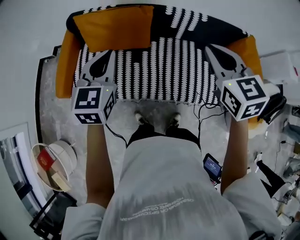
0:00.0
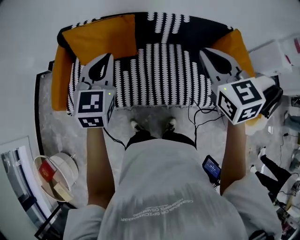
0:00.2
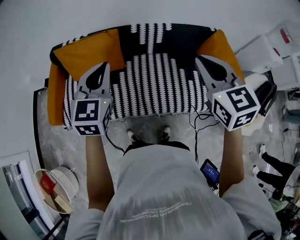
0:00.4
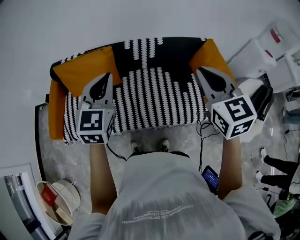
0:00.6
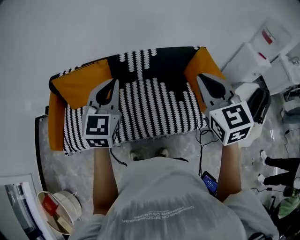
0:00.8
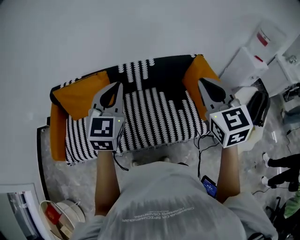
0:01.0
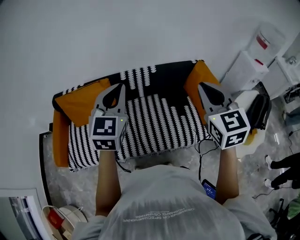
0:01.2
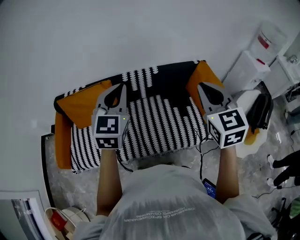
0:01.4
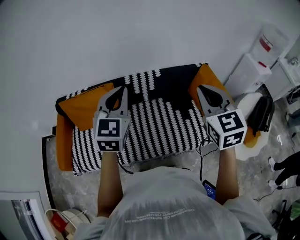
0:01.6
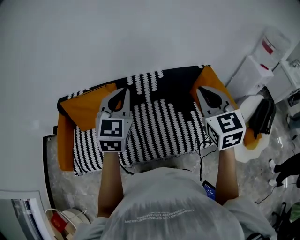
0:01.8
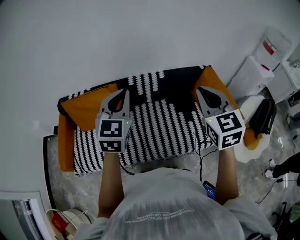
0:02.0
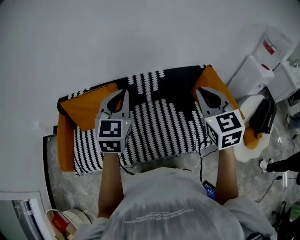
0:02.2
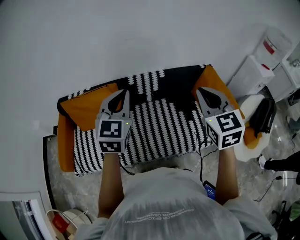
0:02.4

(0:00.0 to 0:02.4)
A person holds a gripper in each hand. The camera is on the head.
0:00.0 - 0:01.2: The right gripper heads to the right, covering about 25 cm, and rotates some 20 degrees. The left gripper is displaced to the right and upward by some 30 cm.
0:01.2 - 0:02.4: The right gripper travels to the left by about 5 cm. Meanwhile the left gripper shifts by about 5 cm.

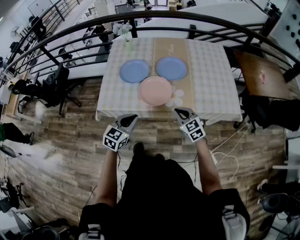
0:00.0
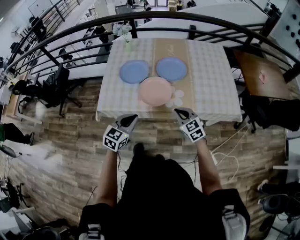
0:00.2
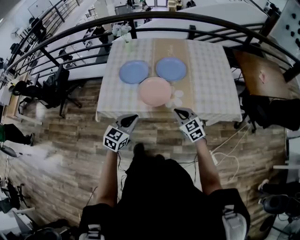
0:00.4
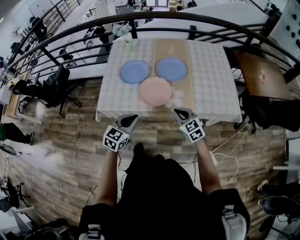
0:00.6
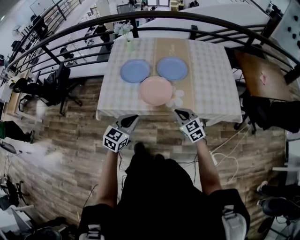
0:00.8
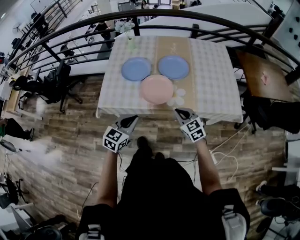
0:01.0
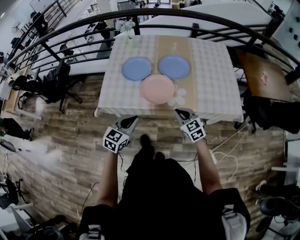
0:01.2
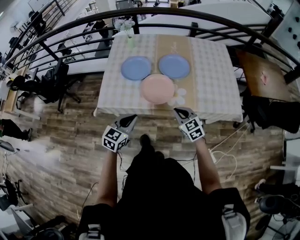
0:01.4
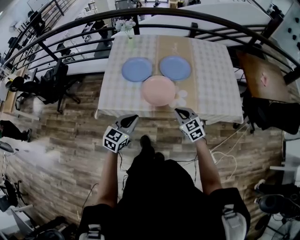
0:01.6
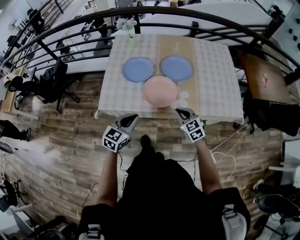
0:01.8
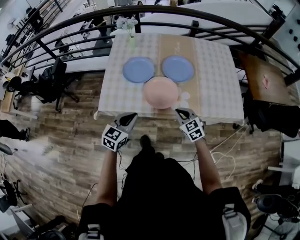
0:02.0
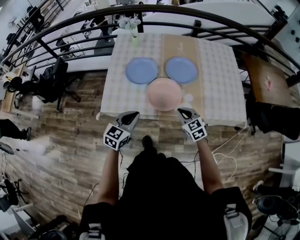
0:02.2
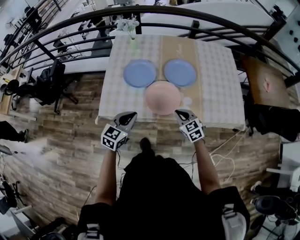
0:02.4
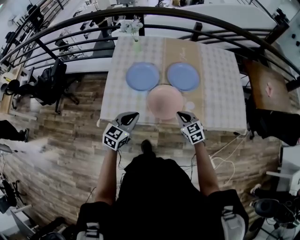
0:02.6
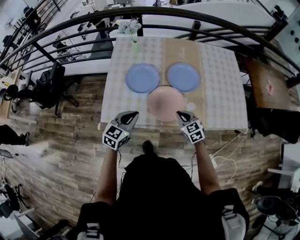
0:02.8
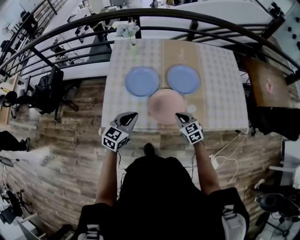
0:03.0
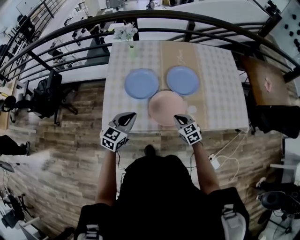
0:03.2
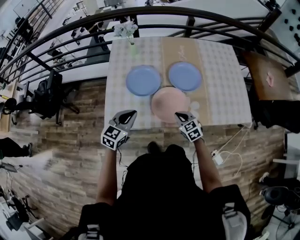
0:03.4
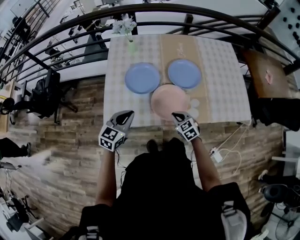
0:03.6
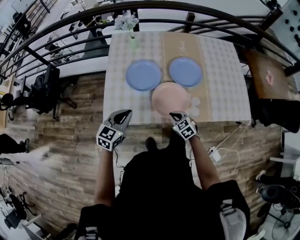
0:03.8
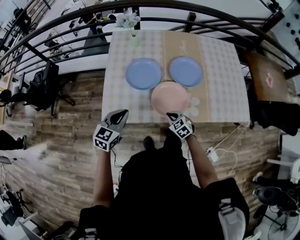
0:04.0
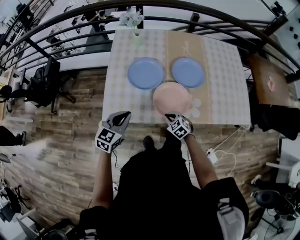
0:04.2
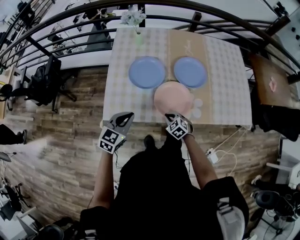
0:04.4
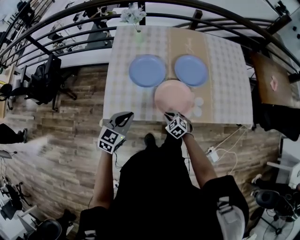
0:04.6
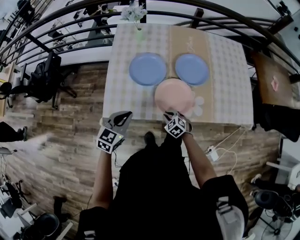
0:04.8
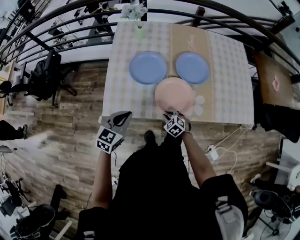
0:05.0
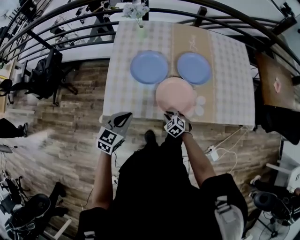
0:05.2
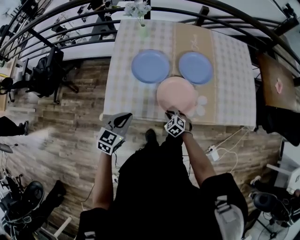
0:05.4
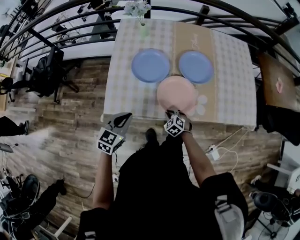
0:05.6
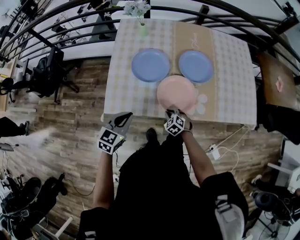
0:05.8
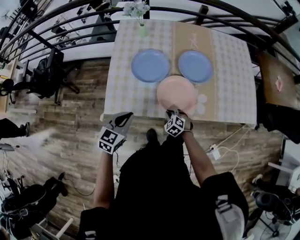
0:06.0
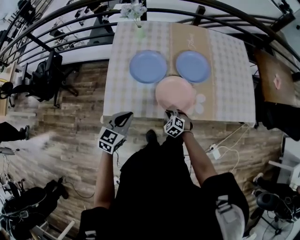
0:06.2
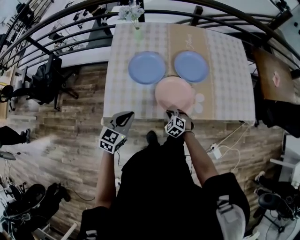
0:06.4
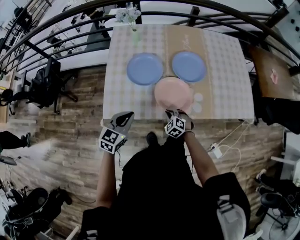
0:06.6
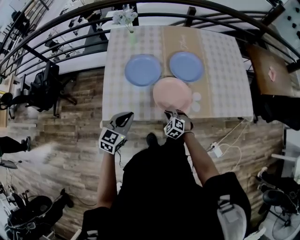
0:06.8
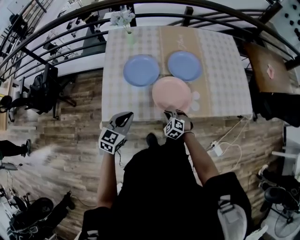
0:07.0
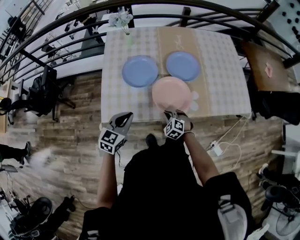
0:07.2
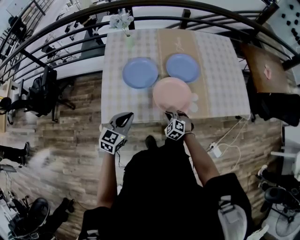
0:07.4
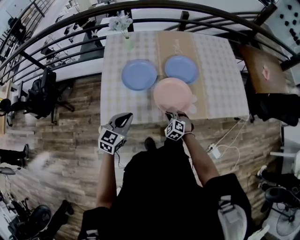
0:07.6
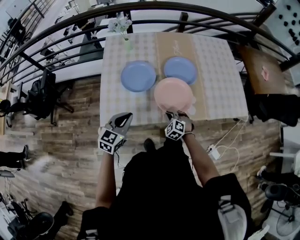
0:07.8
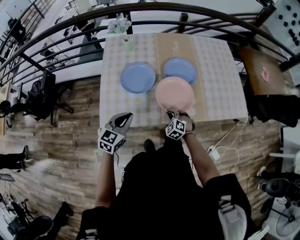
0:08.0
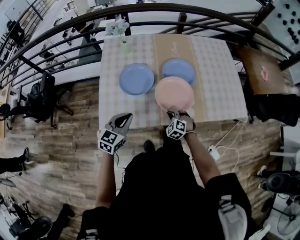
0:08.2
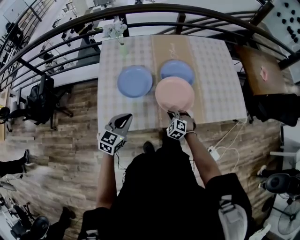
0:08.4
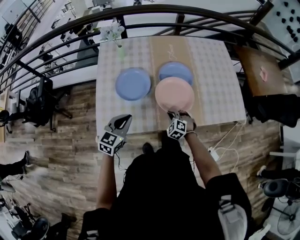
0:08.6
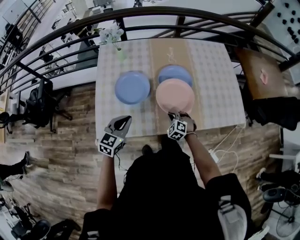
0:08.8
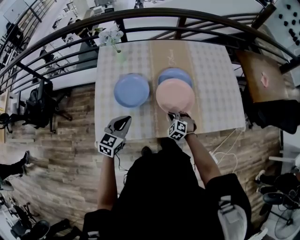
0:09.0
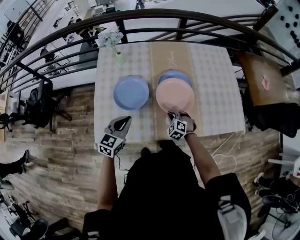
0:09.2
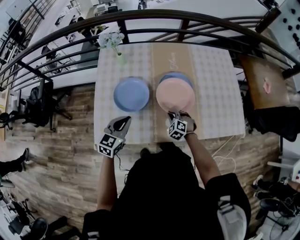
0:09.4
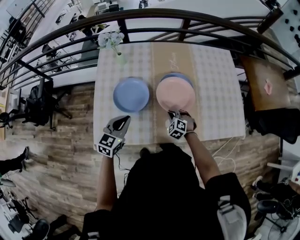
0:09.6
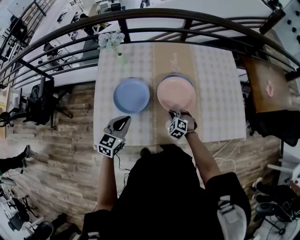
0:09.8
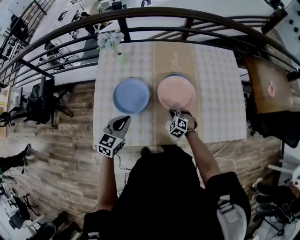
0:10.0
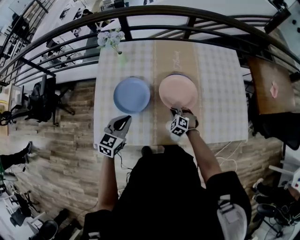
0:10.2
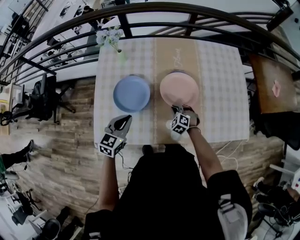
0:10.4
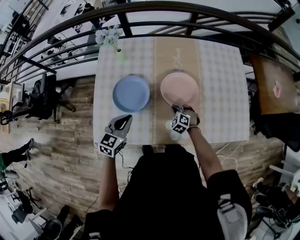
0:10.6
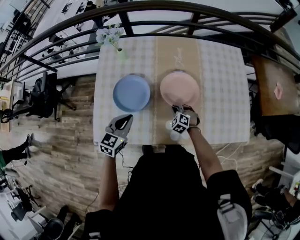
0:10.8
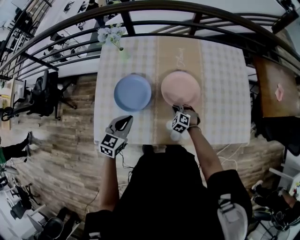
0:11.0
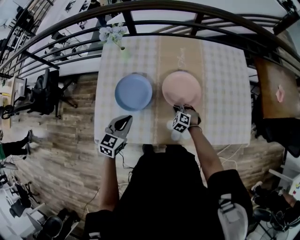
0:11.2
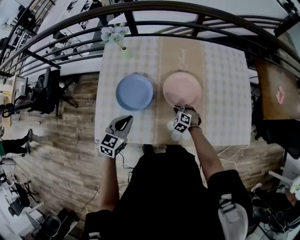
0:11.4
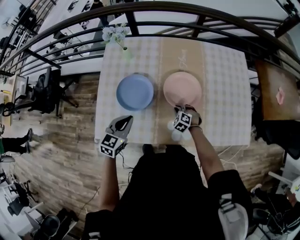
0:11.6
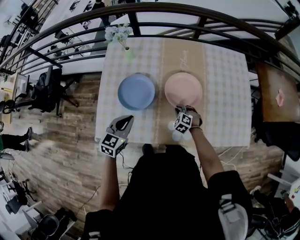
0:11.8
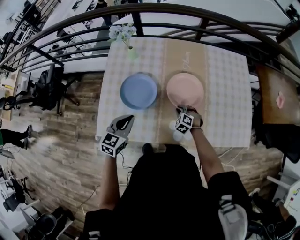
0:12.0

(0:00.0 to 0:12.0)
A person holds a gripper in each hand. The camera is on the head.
0:00.0 - 0:01.6: The grippers move only a little.
0:01.6 - 0:03.0: The right gripper moves forward, to the left and downward, some 15 cm. Meanwhile the left gripper shifts roughly 20 cm forward and to the left.
0:03.0 - 0:04.4: The right gripper is displaced downward and to the left by some 15 cm, and turns by roughly 20 degrees, while the left gripper is displaced to the left by approximately 5 cm.
0:04.4 - 0:06.0: The grippers make only small movements.
0:06.0 - 0:07.6: The right gripper heads upward, covering some 5 cm.
0:07.6 - 0:09.0: The left gripper is displaced forward by about 10 cm. The right gripper is displaced forward and to the right by some 15 cm.
0:09.0 - 0:10.4: Both grippers travel together forward, some 10 cm.
0:10.4 - 0:12.0: The grippers make only small movements.

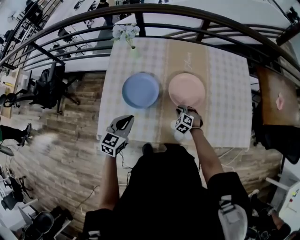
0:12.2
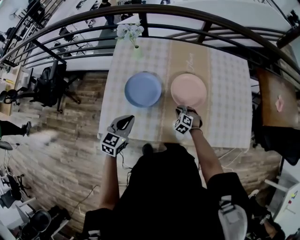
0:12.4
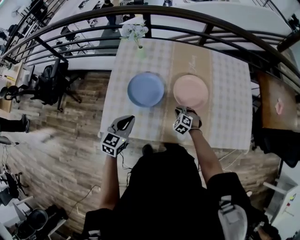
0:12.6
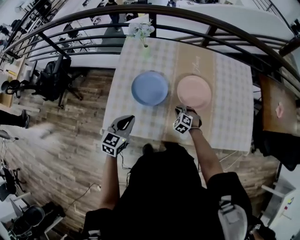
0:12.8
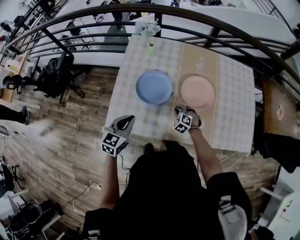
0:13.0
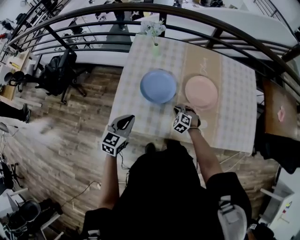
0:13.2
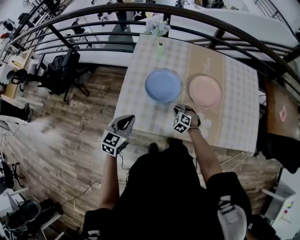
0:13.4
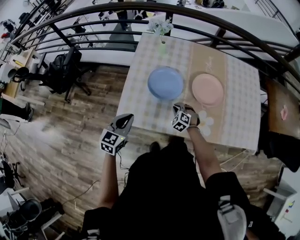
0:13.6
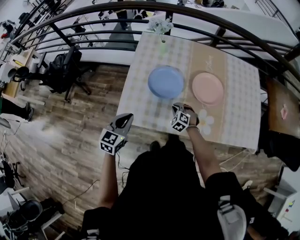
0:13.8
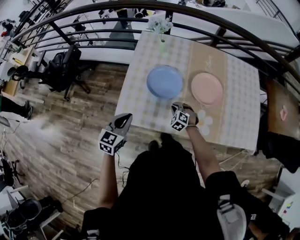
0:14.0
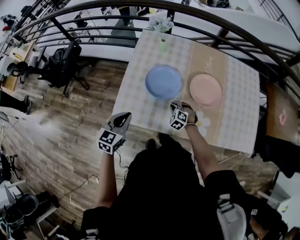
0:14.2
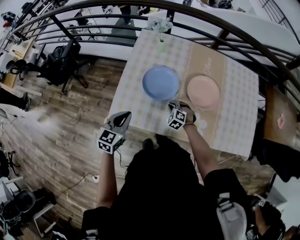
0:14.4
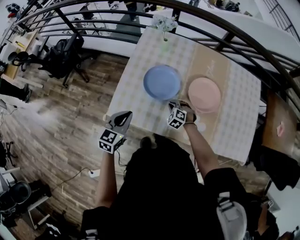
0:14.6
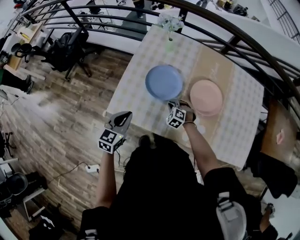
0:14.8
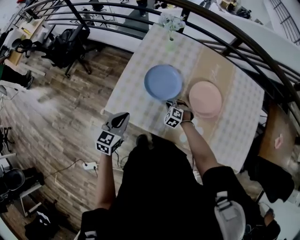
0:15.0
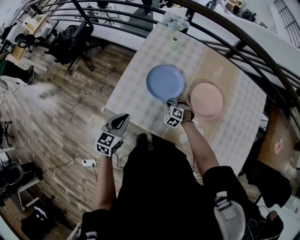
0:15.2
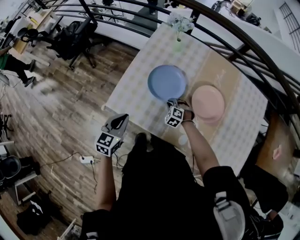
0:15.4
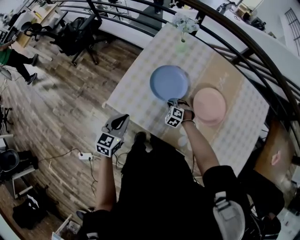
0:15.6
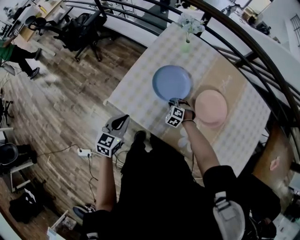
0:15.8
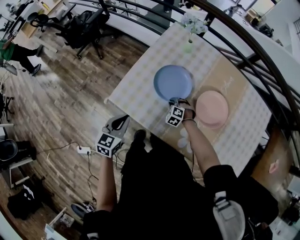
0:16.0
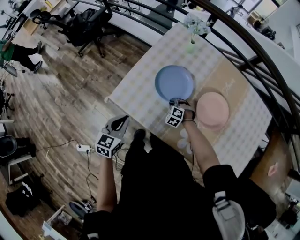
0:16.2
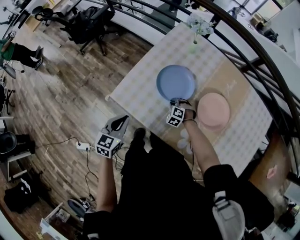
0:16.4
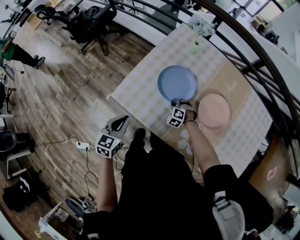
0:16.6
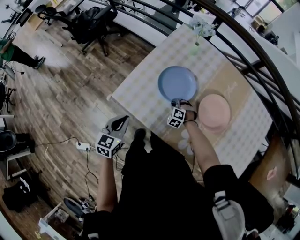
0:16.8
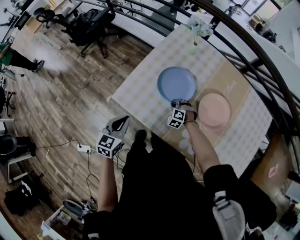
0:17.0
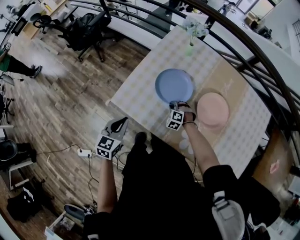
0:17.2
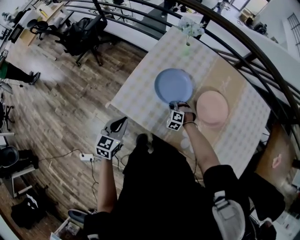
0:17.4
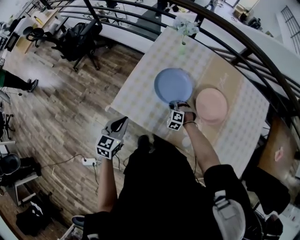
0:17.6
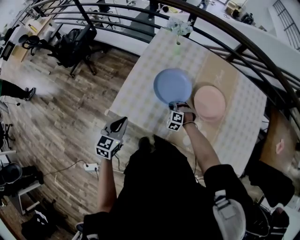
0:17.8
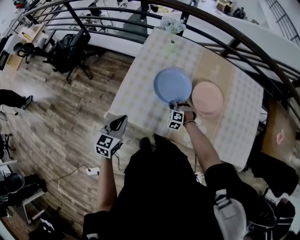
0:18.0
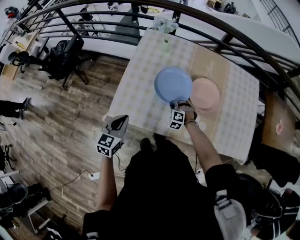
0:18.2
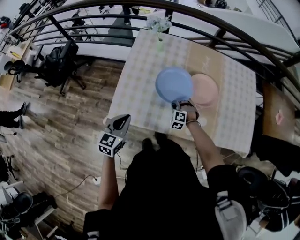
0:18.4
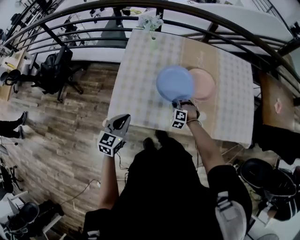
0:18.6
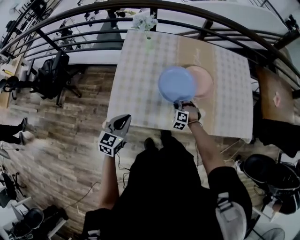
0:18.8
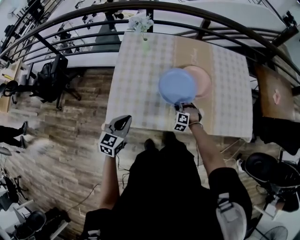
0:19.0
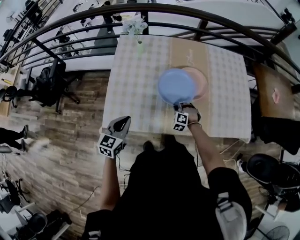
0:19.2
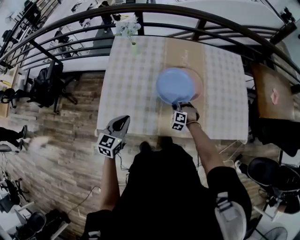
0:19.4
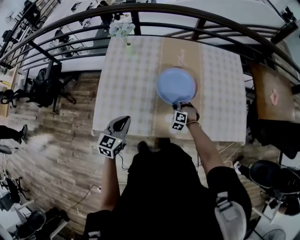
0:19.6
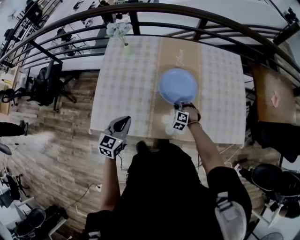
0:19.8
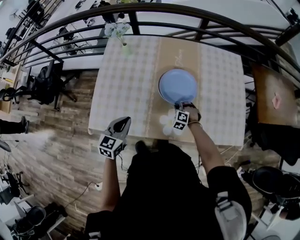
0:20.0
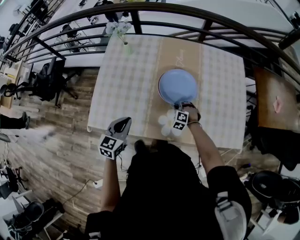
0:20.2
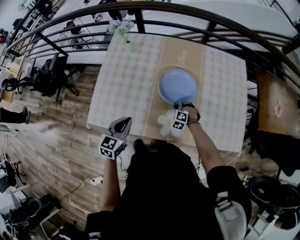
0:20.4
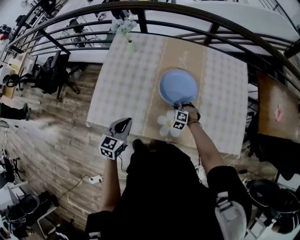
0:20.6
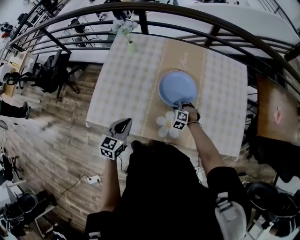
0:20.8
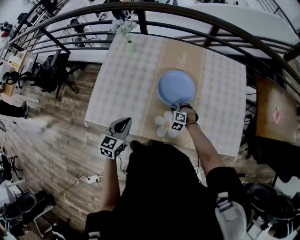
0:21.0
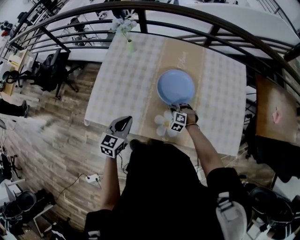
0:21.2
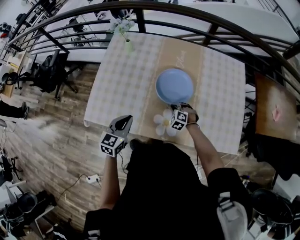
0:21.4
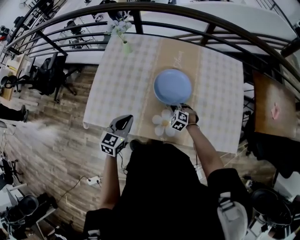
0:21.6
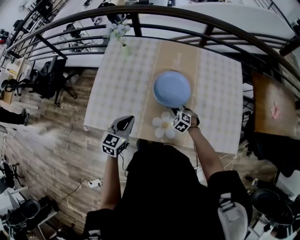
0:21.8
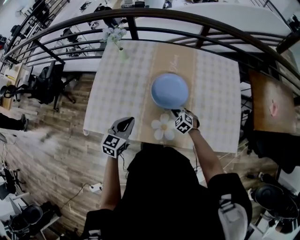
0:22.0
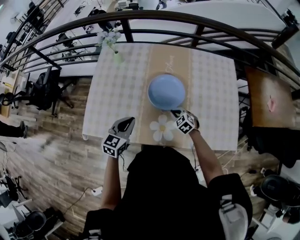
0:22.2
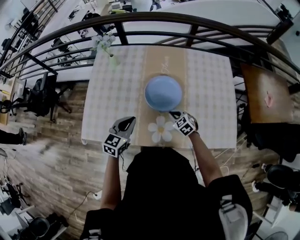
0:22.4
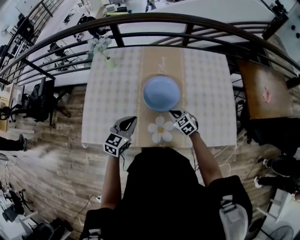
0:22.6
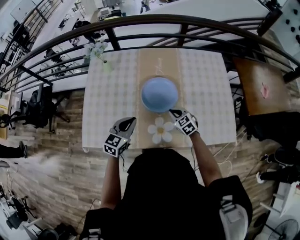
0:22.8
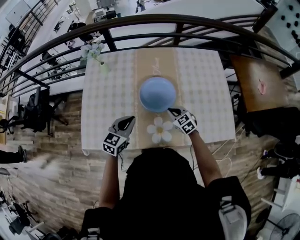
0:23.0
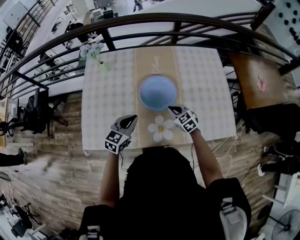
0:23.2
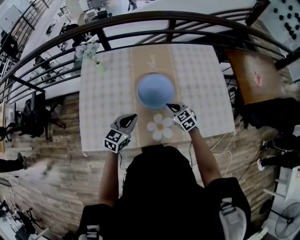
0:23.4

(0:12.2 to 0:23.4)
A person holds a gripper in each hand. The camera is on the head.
0:12.2 - 0:13.8: Both grippers travel together to the left and backward, approximately 20 cm.
0:13.8 - 0:15.4: The right gripper goes approximately 5 cm forward, and swivels some 20 degrees.
0:15.4 - 0:17.0: The grippers move only a little.
0:17.0 - 0:18.6: The left gripper changes place by some 5 cm, and changes its angle by approximately 30 degrees. The right gripper shifts by some 10 cm, and changes its angle by some 20 degrees.
0:18.6 - 0:20.2: Both grippers move to the right, approximately 20 cm.
0:20.2 - 0:21.8: The left gripper is displaced to the right by about 5 cm, while the right gripper turns by some 20 degrees.
0:21.8 - 0:23.4: The right gripper goes about 10 cm upward, and changes its angle by approximately 40 degrees, while the left gripper moves forward, about 5 cm, and changes its angle by approximately 20 degrees.
